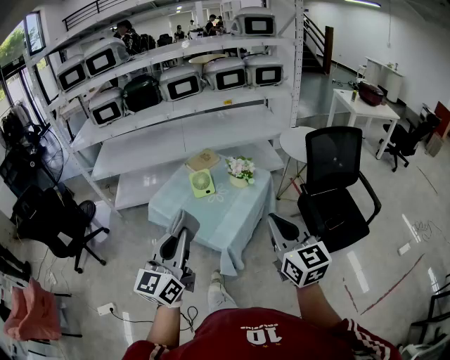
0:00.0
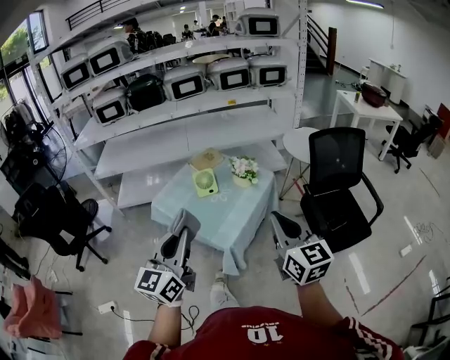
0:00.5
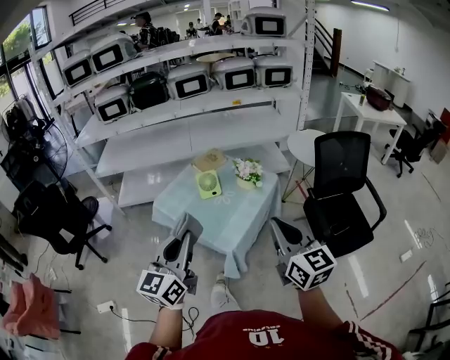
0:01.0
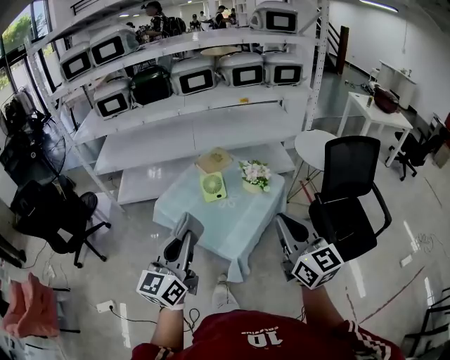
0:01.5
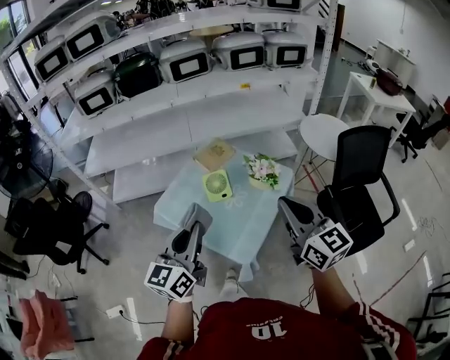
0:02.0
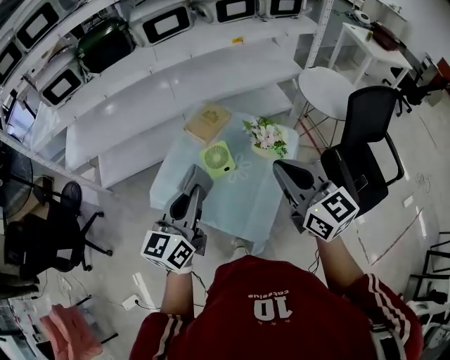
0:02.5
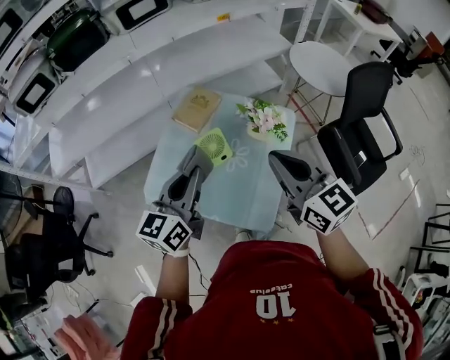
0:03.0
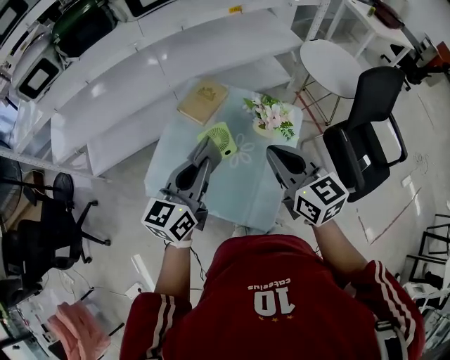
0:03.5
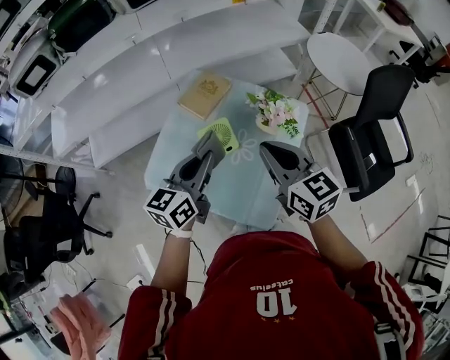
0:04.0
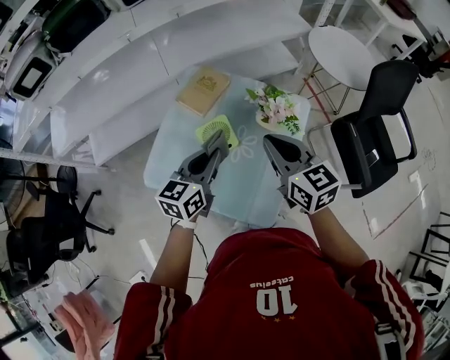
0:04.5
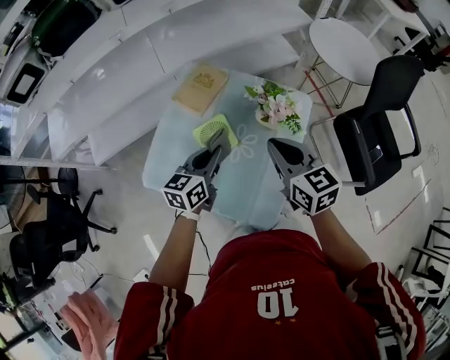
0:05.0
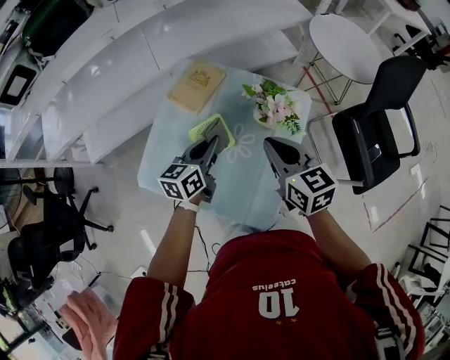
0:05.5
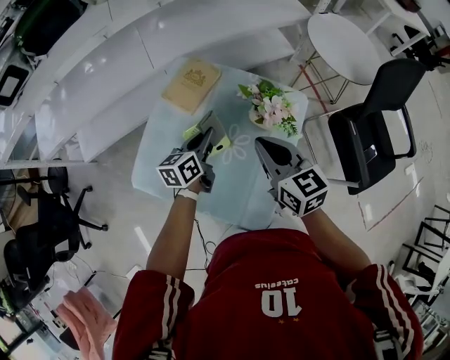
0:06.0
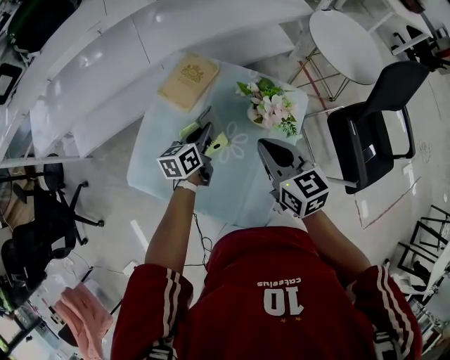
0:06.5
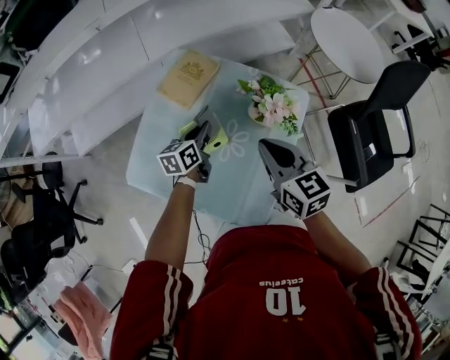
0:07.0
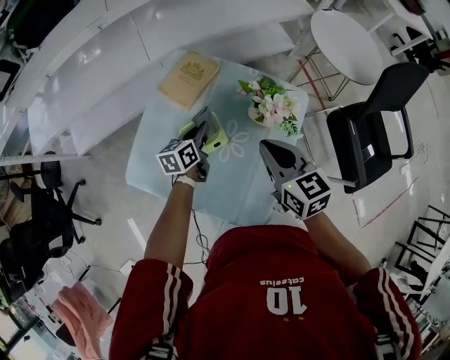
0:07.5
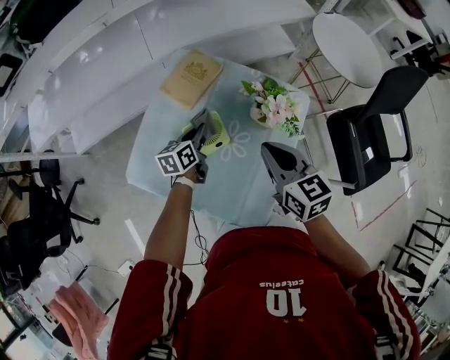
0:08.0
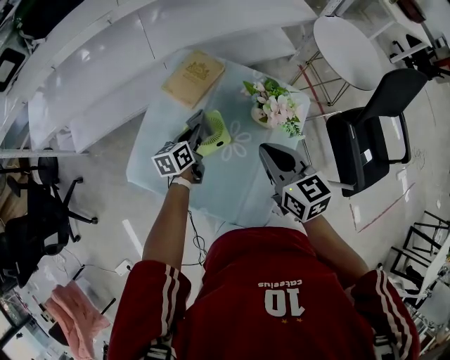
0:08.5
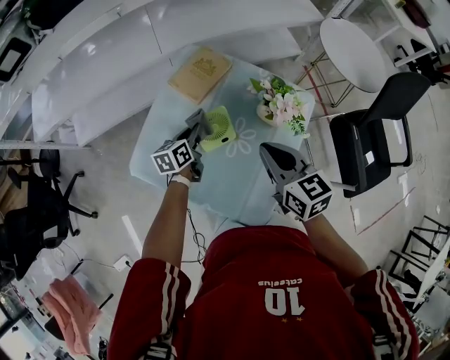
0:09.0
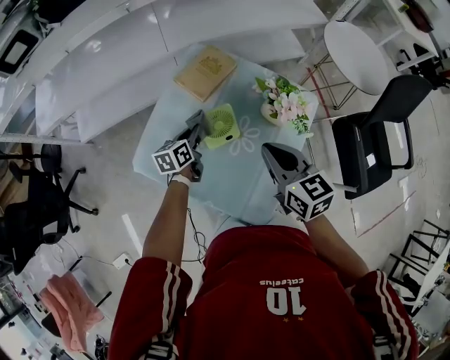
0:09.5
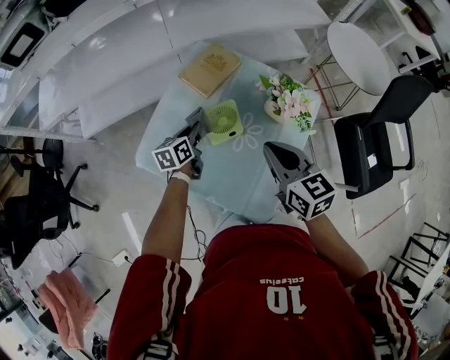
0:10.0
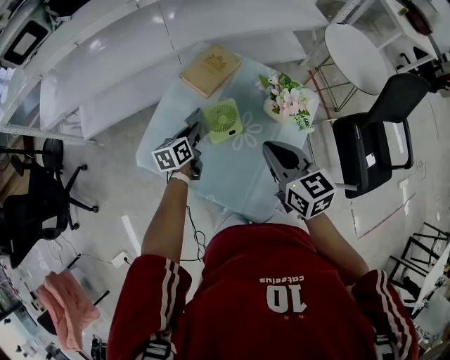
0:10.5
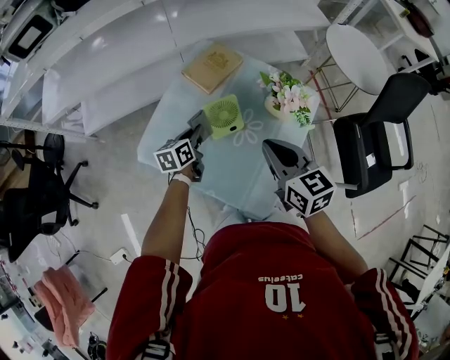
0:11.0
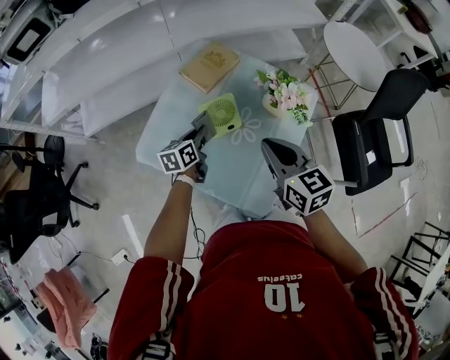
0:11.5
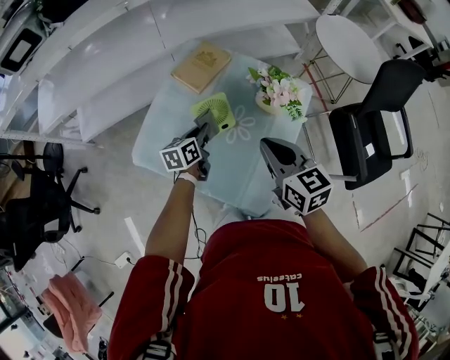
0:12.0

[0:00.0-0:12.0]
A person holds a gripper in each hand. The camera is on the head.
0:00.0 to 0:02.0: The grippers both shift forward by some 20 cm.
0:02.0 to 0:04.0: The left gripper heads forward and downward, covering roughly 30 cm, and swivels about 30 degrees. Meanwhile the right gripper heads forward, downward and to the left, covering some 25 cm.
0:04.0 to 0:06.0: The left gripper is displaced downward and forward by approximately 20 cm, while the right gripper goes approximately 10 cm downward and forward.
0:06.0 to 0:08.0: The left gripper goes some 5 cm downward.
0:08.0 to 0:10.0: The right gripper changes place by about 5 cm; the left gripper heads to the left, covering approximately 10 cm.
0:10.0 to 0:12.0: The left gripper shifts about 5 cm to the right.

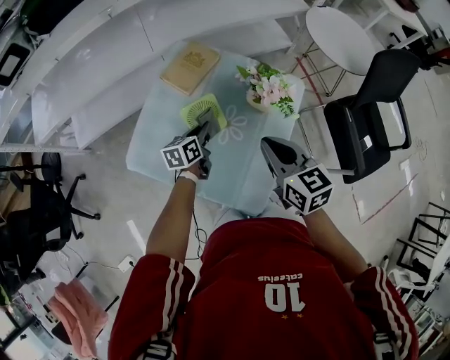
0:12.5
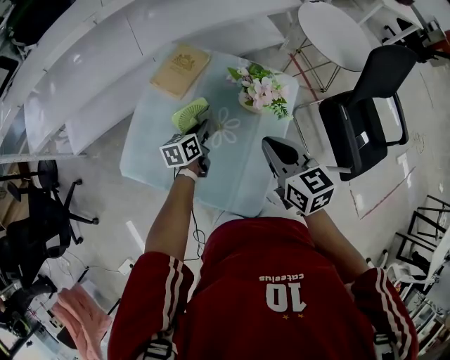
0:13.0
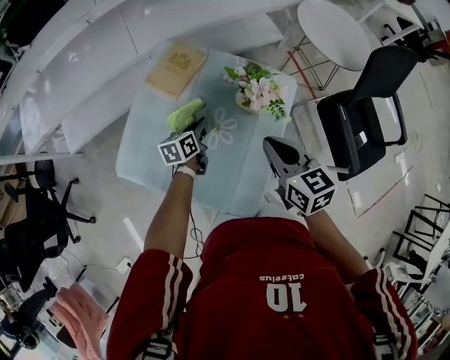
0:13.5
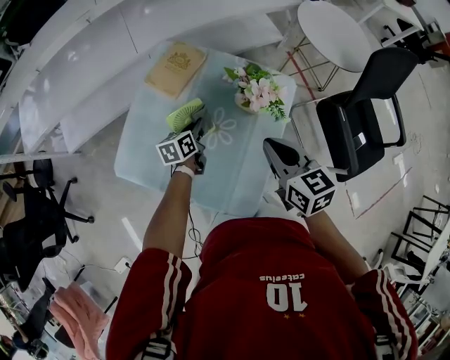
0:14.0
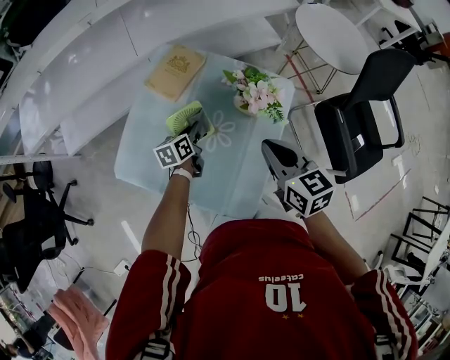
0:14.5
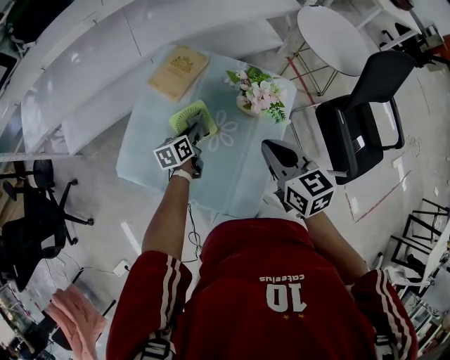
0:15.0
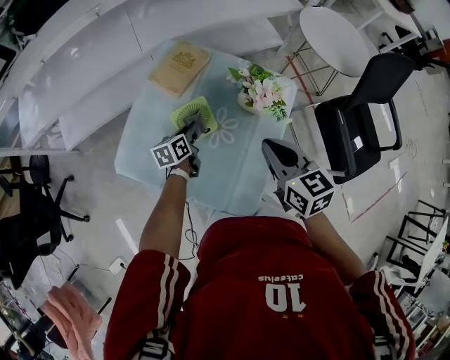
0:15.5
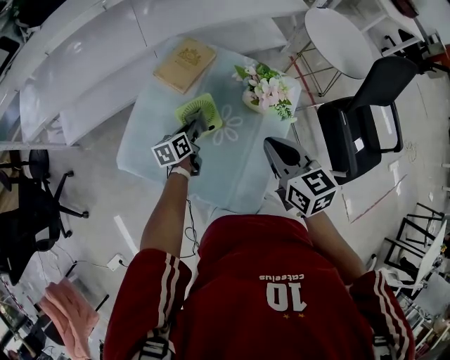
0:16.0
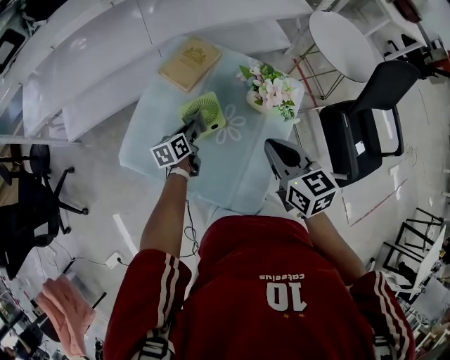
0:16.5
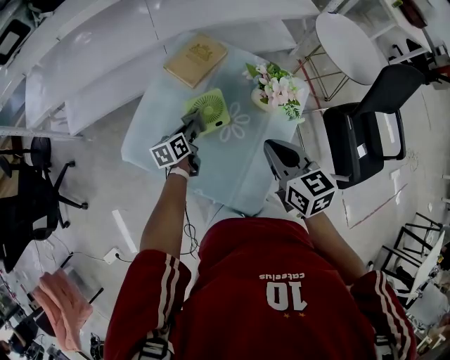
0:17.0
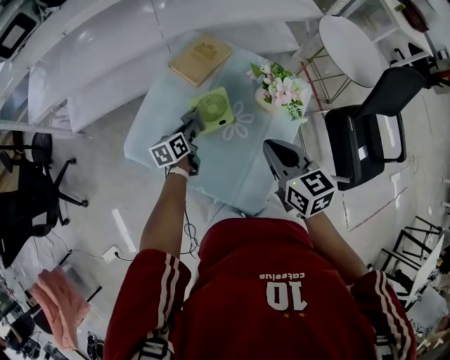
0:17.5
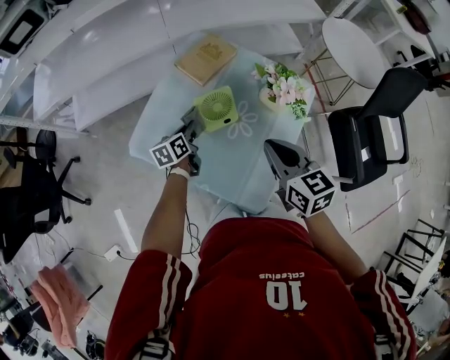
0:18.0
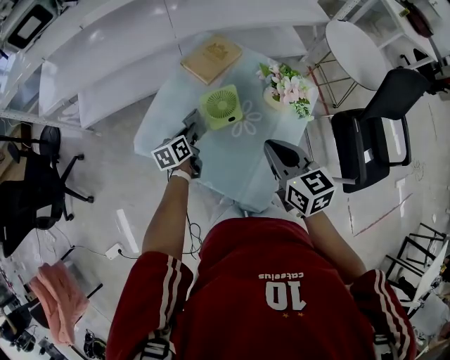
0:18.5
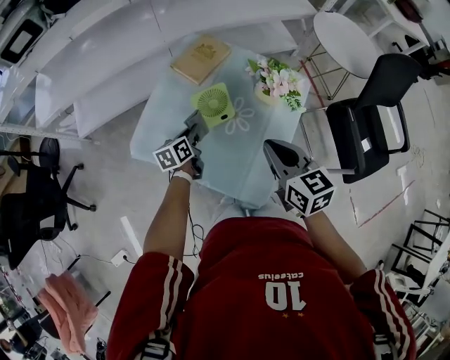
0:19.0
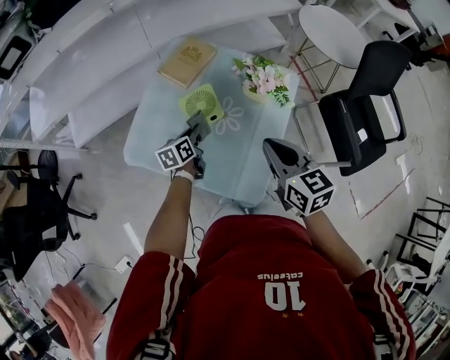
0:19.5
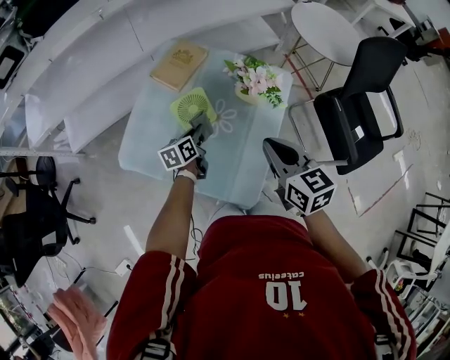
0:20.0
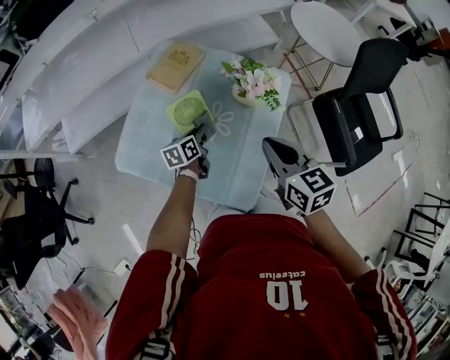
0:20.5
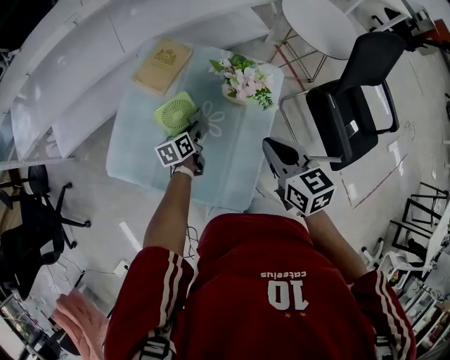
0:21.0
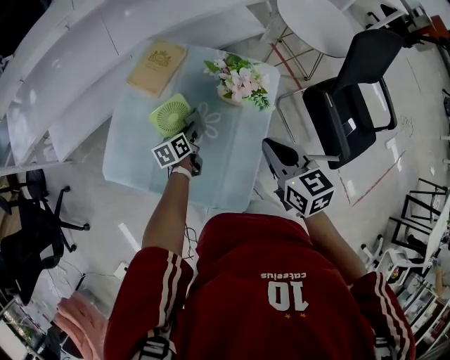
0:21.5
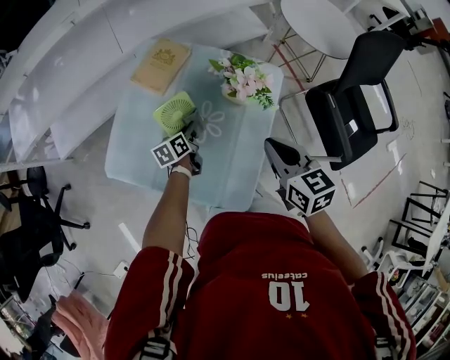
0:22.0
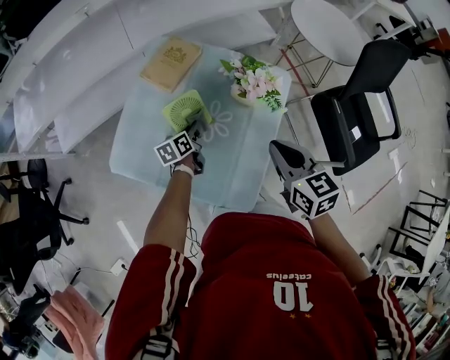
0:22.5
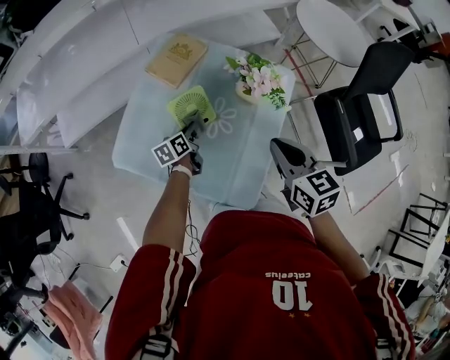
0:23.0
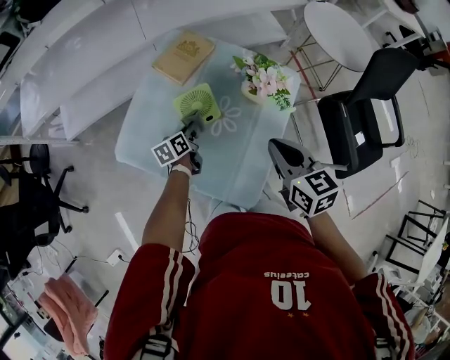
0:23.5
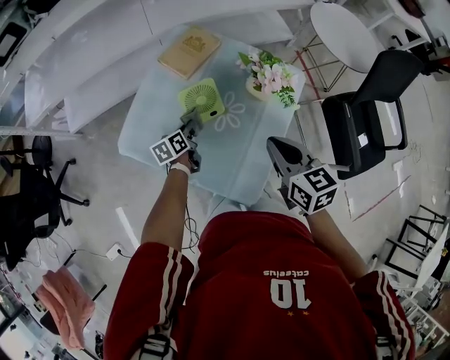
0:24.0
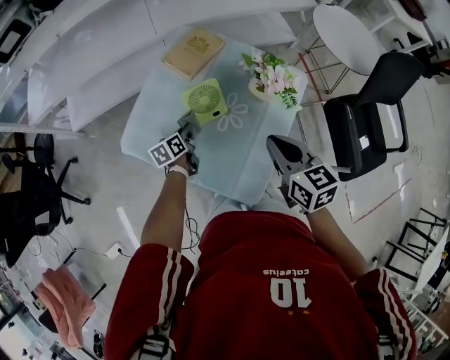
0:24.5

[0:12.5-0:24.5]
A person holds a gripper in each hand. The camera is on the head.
0:12.5 to 0:14.5: The left gripper changes place by about 5 cm.
0:14.5 to 0:16.5: The left gripper heads to the left, covering some 5 cm.
0:16.5 to 0:18.5: The two grippers go about 5 cm to the left.
0:18.5 to 0:20.5: The left gripper goes roughly 15 cm to the right. The right gripper heads to the right, covering some 10 cm.
0:20.5 to 0:22.5: The grippers stay close to where they were, moving slightly.
0:22.5 to 0:24.5: The left gripper is displaced to the left by approximately 10 cm.

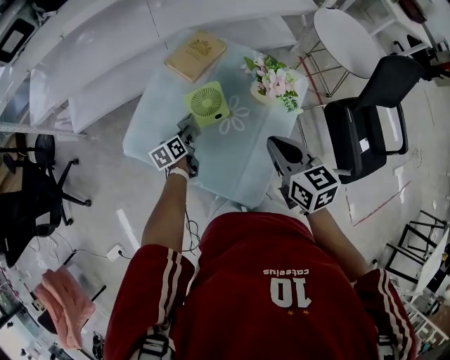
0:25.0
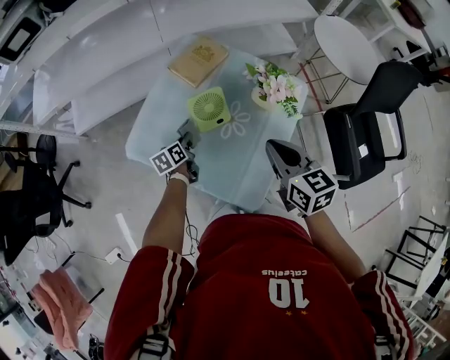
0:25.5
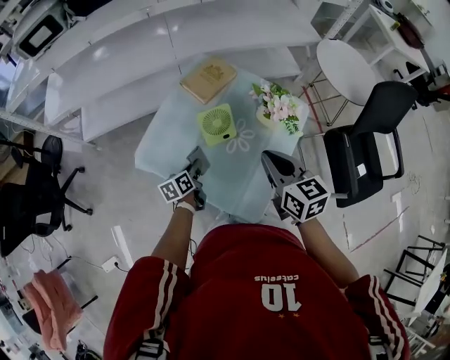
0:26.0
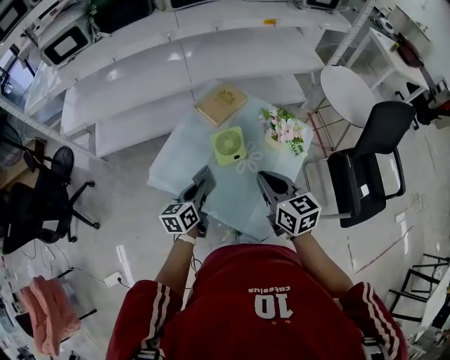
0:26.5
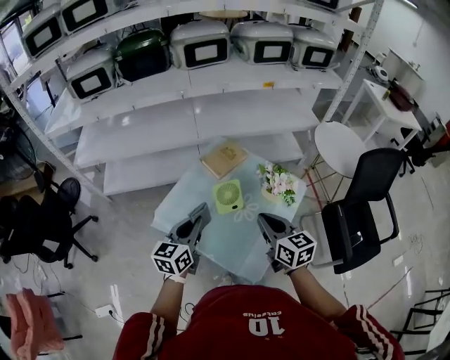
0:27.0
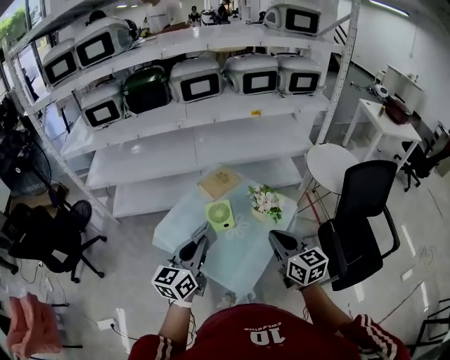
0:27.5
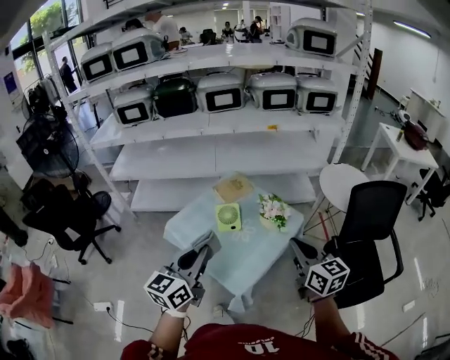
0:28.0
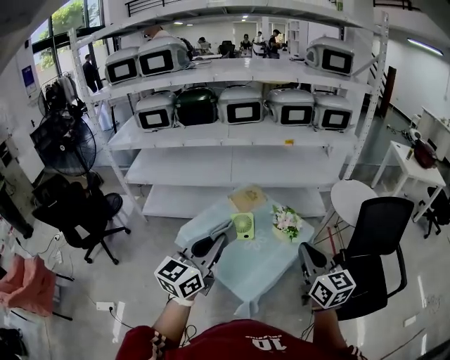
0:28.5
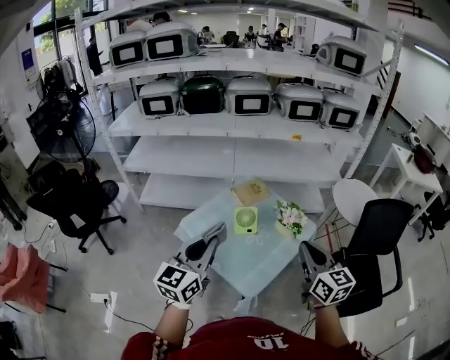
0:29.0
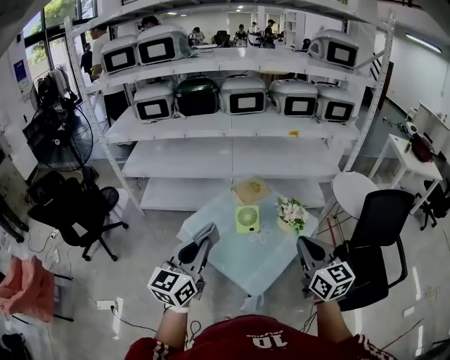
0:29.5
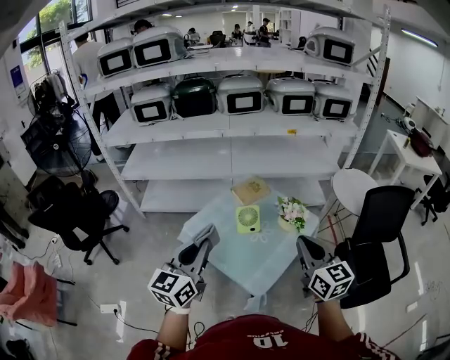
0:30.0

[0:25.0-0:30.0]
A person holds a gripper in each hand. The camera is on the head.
0:25.0 to 0:27.5: The left gripper travels upward and backward by about 40 cm, and tilts its fingers about 30 degrees upward, while the right gripper shifts about 15 cm upward and backward.
0:27.5 to 0:30.0: The right gripper goes about 10 cm upward and backward; the left gripper is displaced backward, upward and to the left by approximately 15 cm.
